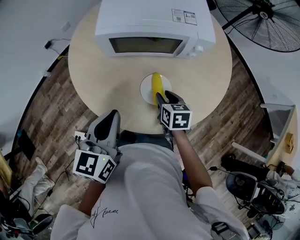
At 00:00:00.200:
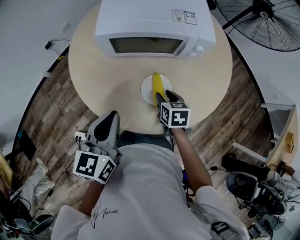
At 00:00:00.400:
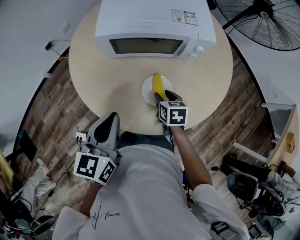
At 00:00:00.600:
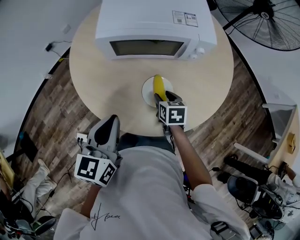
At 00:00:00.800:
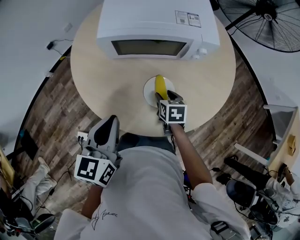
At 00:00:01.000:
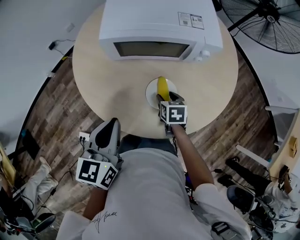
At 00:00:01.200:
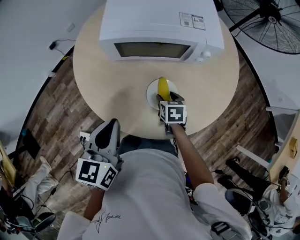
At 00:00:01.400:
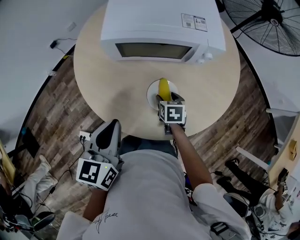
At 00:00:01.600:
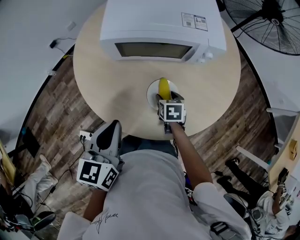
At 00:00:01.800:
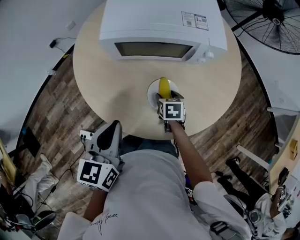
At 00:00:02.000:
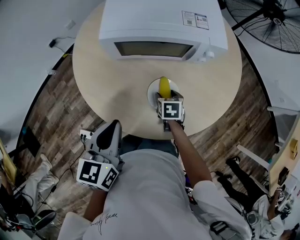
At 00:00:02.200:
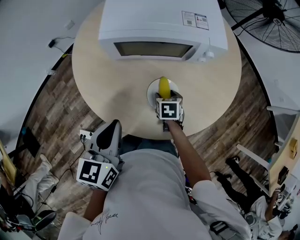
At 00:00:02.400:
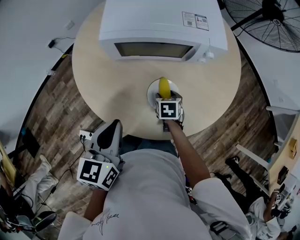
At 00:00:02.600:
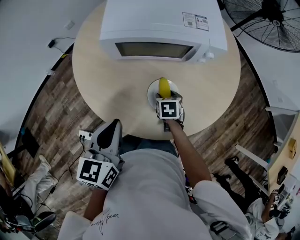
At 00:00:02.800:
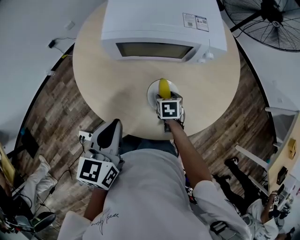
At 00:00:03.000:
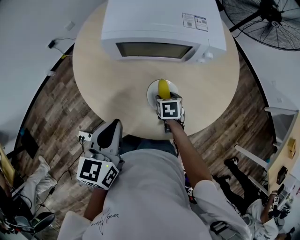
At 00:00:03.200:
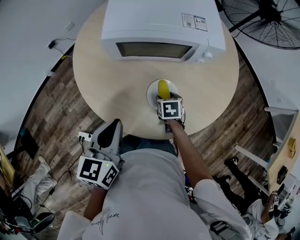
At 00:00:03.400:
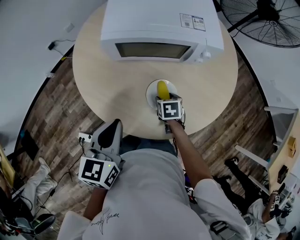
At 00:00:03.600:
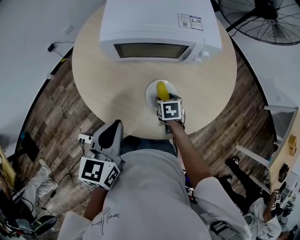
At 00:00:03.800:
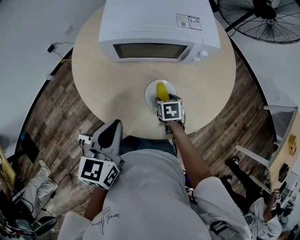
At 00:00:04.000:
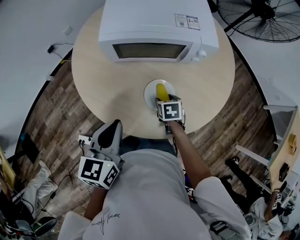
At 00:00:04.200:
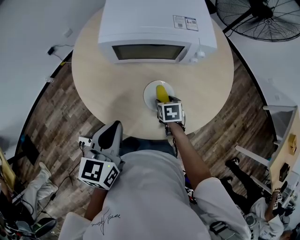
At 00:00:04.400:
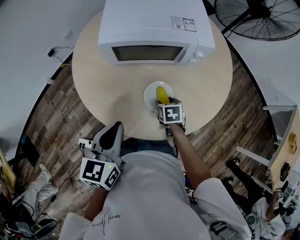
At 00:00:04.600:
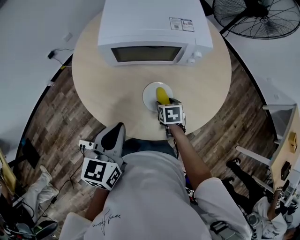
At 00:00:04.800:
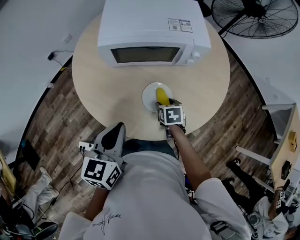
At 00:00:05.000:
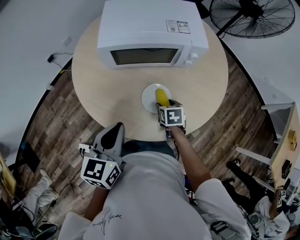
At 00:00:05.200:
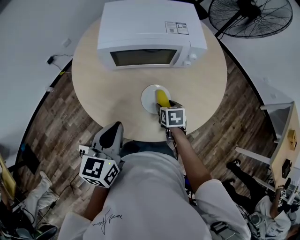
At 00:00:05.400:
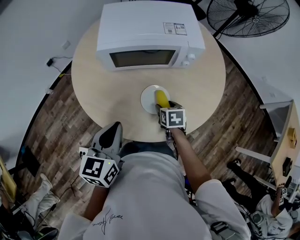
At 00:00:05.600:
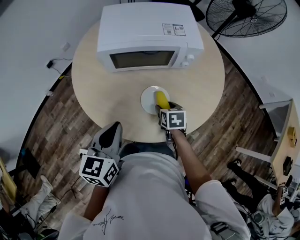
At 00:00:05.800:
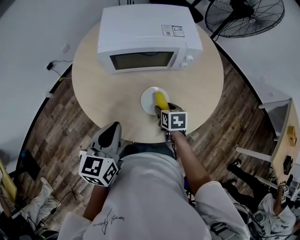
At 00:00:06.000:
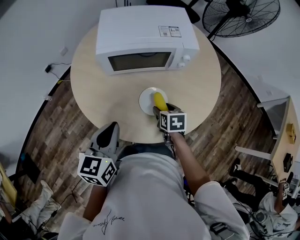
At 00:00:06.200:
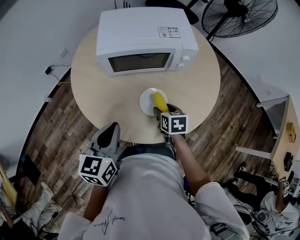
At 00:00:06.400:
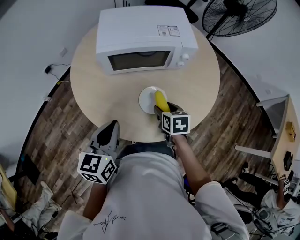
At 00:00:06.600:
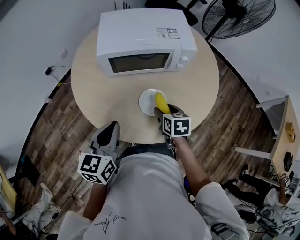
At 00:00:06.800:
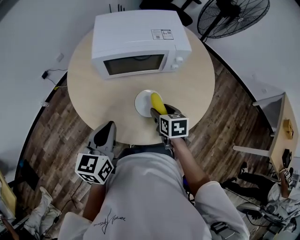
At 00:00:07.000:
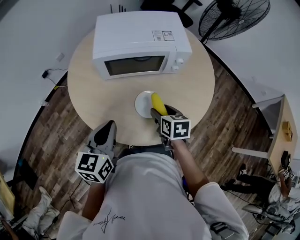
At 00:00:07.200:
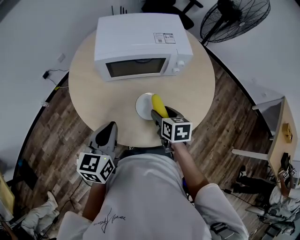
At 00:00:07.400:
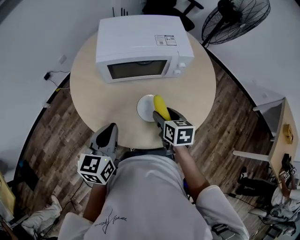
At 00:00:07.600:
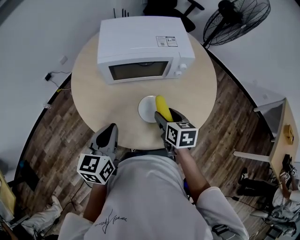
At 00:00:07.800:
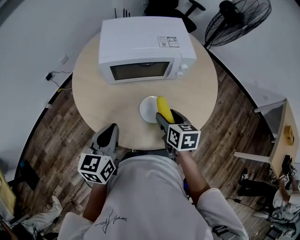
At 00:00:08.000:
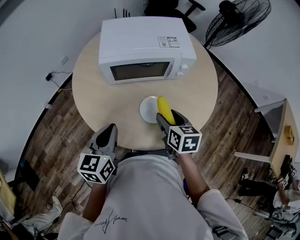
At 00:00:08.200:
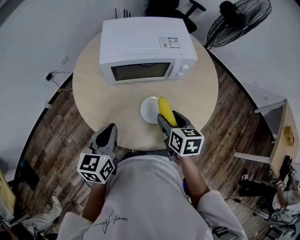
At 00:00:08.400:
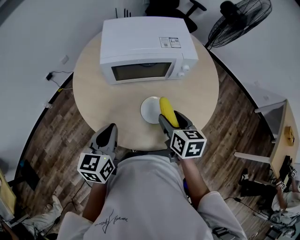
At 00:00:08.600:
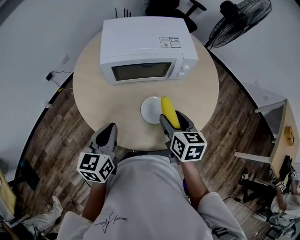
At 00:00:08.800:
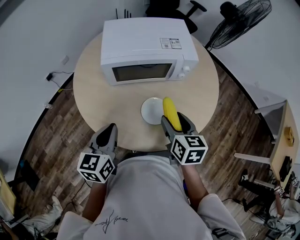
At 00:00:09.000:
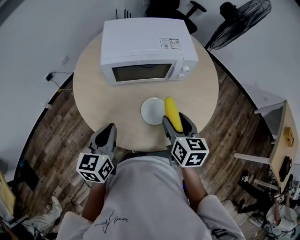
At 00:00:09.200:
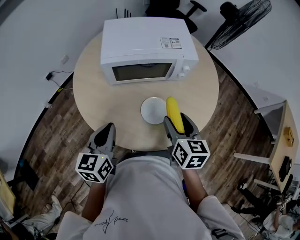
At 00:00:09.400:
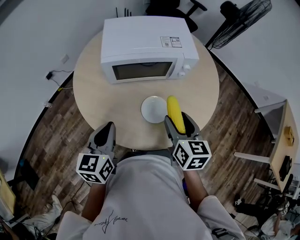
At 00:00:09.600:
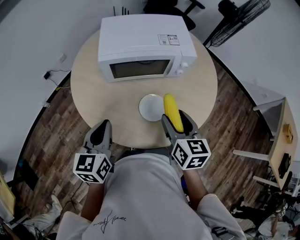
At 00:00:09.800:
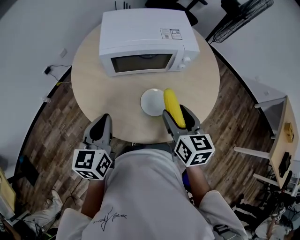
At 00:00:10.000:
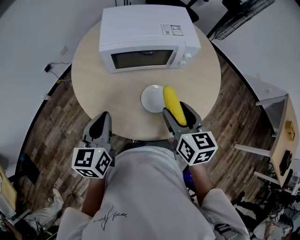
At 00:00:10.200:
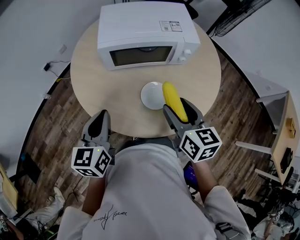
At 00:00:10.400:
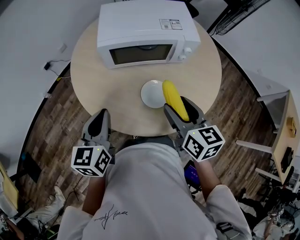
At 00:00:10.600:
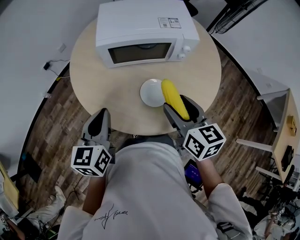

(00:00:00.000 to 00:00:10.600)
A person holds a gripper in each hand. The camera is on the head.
00:00:00.000 - 00:00:01.600: The right gripper moves downward, some 10 cm, and opens its fingers.
00:00:01.600 - 00:00:04.600: There are only small adjustments of the grippers.
00:00:04.600 - 00:00:06.000: The right gripper heads upward, covering about 5 cm.
00:00:06.000 - 00:00:07.600: The right gripper moves upward, about 10 cm.
00:00:07.600 - 00:00:09.000: The right gripper goes roughly 5 cm upward.
00:00:09.000 - 00:00:10.600: The grippers move only a little.

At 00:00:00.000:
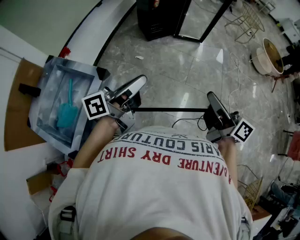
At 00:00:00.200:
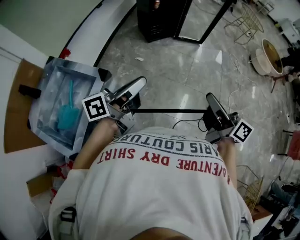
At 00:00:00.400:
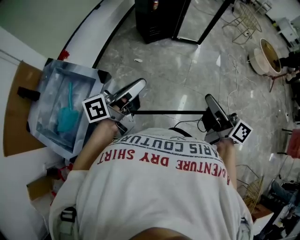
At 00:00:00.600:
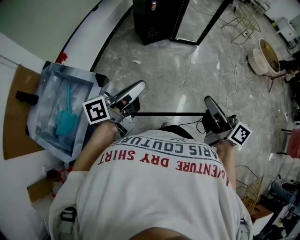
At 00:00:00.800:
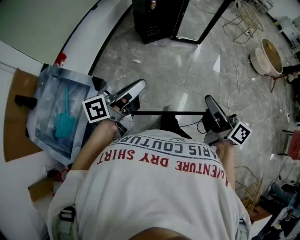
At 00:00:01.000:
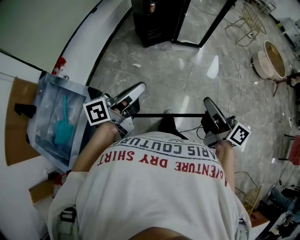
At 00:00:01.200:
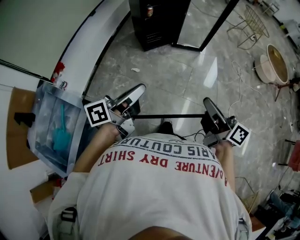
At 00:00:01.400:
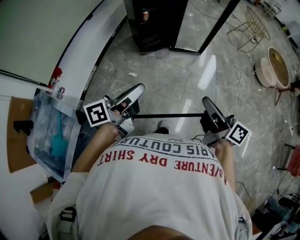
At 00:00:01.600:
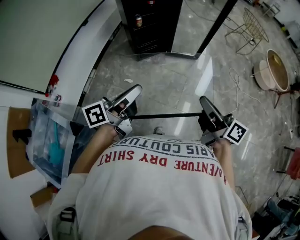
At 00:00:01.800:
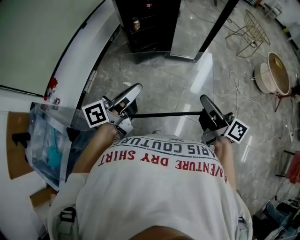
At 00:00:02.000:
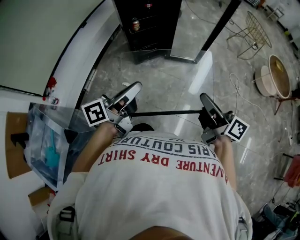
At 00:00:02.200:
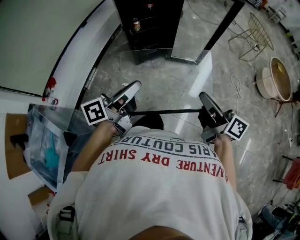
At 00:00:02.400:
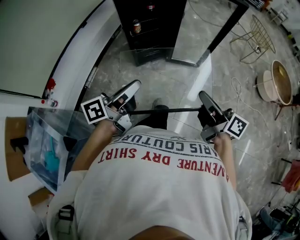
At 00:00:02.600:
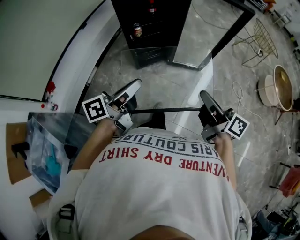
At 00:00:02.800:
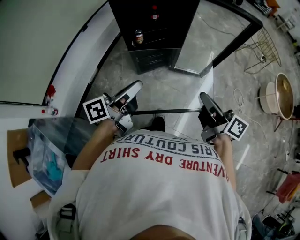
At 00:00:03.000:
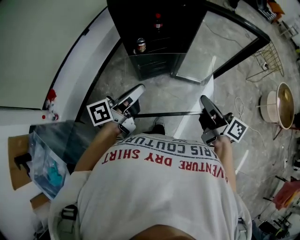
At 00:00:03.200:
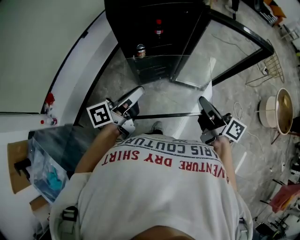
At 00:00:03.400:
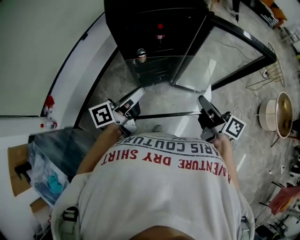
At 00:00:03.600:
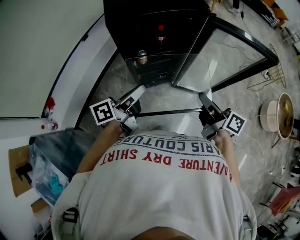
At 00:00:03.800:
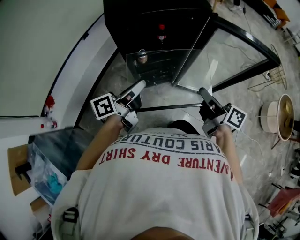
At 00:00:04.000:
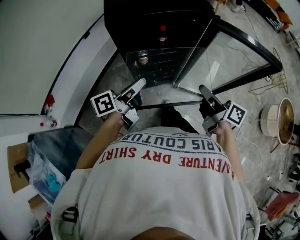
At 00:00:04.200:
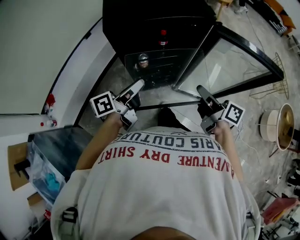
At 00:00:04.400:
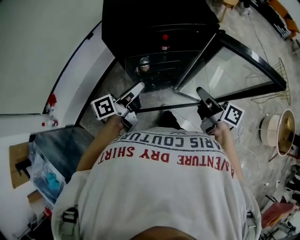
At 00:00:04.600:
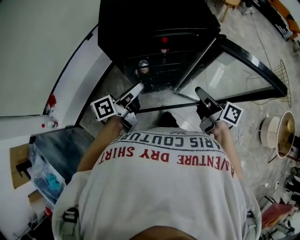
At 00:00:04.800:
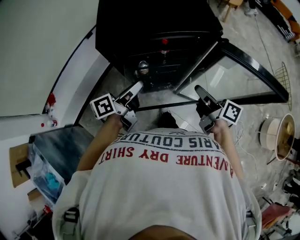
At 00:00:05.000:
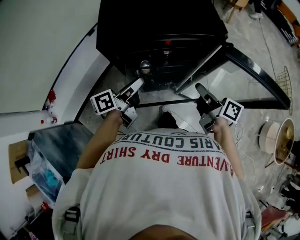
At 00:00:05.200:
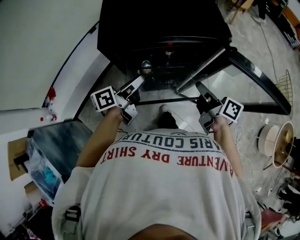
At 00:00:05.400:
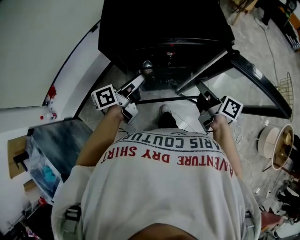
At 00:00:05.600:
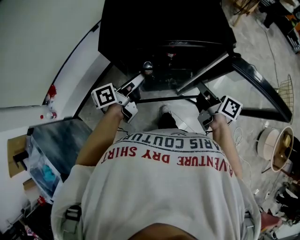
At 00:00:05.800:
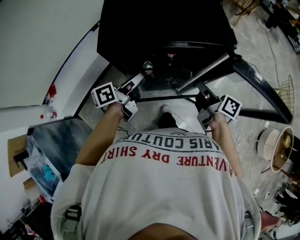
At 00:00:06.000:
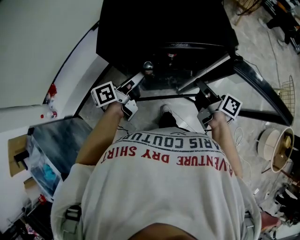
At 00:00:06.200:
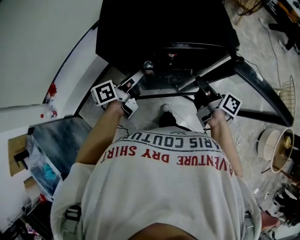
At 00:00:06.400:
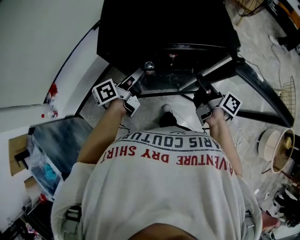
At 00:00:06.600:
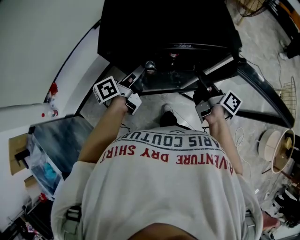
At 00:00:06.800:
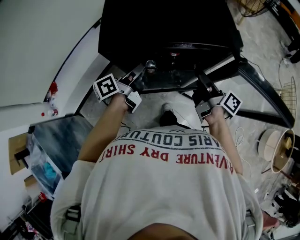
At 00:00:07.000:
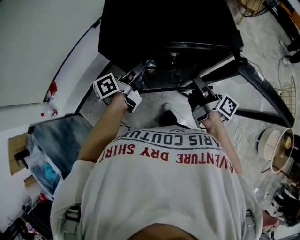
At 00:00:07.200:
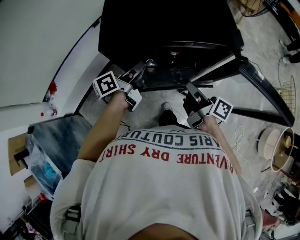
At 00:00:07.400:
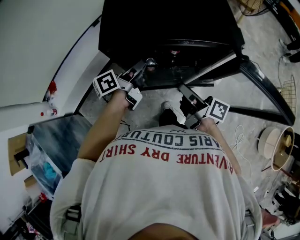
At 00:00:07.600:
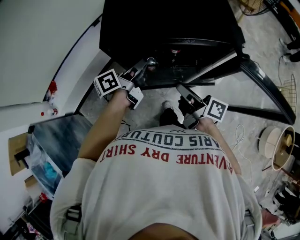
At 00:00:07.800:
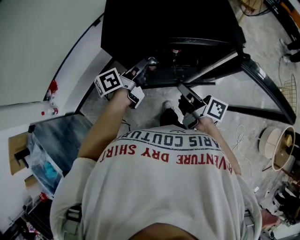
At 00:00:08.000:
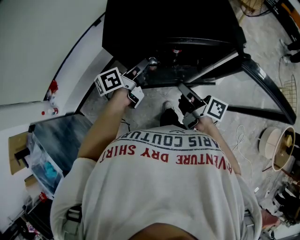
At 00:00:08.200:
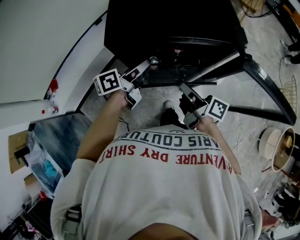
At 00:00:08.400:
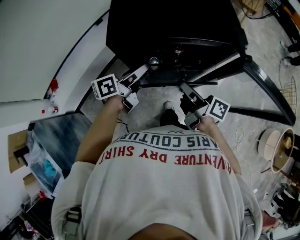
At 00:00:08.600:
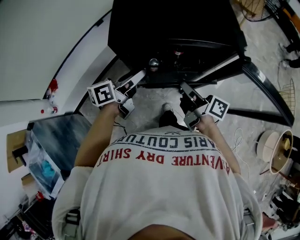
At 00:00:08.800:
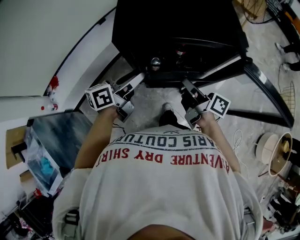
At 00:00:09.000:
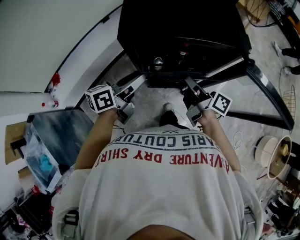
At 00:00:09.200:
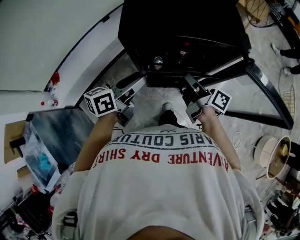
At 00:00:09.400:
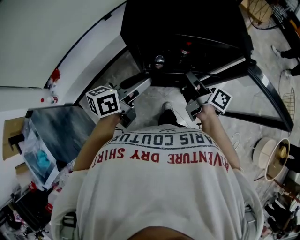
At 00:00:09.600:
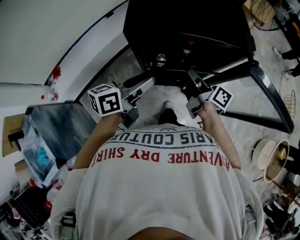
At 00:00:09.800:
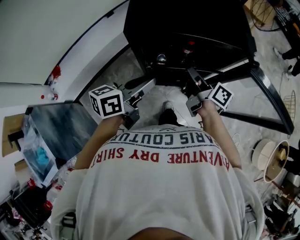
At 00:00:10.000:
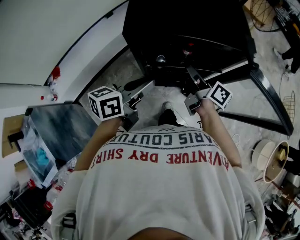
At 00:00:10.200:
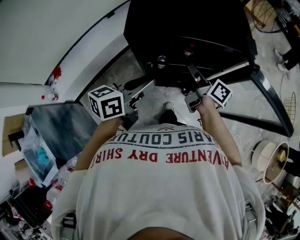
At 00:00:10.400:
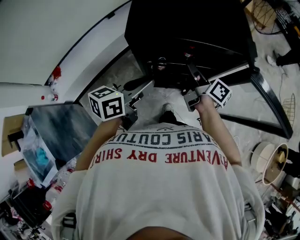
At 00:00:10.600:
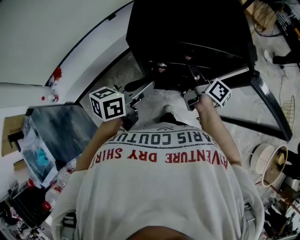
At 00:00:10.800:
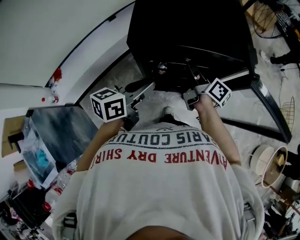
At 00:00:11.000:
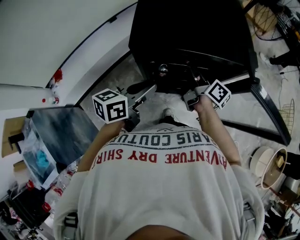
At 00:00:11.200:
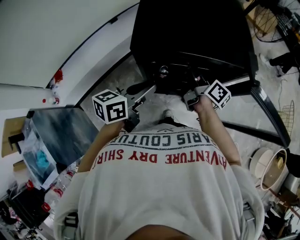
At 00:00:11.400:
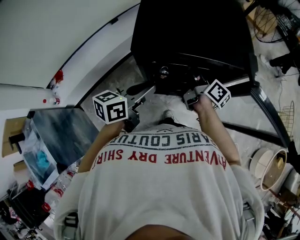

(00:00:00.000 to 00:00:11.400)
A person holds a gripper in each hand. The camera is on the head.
00:00:00.000 - 00:00:01.400: Both grippers travel together forward, some 20 cm.
00:00:01.400 - 00:00:02.800: The grippers both shift forward by approximately 30 cm.
00:00:02.800 - 00:00:04.200: The two grippers go some 25 cm forward.
00:00:04.200 - 00:00:05.600: The grippers both shift forward by some 10 cm.
00:00:05.600 - 00:00:07.200: The right gripper moves to the left, approximately 5 cm.
00:00:07.200 - 00:00:08.600: The left gripper shifts by about 5 cm, and opens up.
00:00:08.600 - 00:00:10.000: The right gripper heads forward, covering approximately 5 cm; the left gripper is displaced backward by roughly 5 cm, and closes its fingers.
00:00:10.000 - 00:00:11.400: The right gripper is displaced forward by about 5 cm.

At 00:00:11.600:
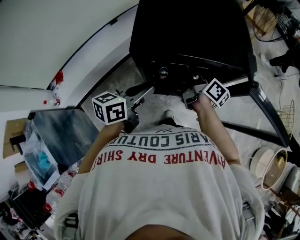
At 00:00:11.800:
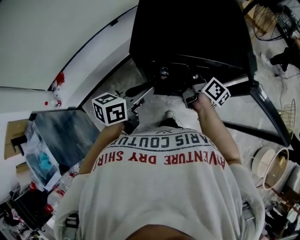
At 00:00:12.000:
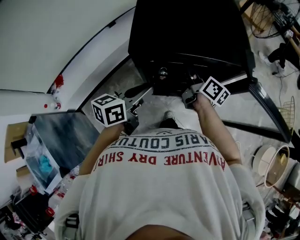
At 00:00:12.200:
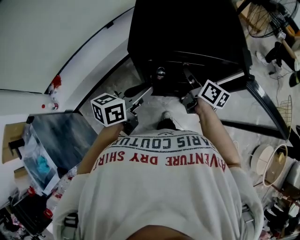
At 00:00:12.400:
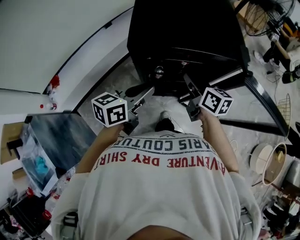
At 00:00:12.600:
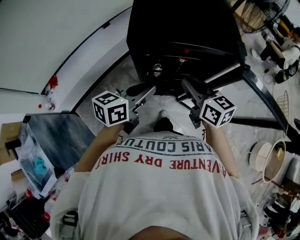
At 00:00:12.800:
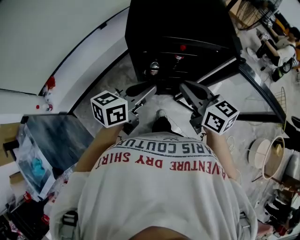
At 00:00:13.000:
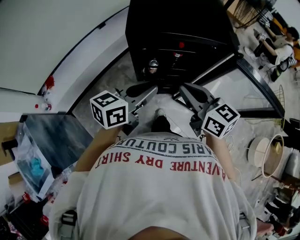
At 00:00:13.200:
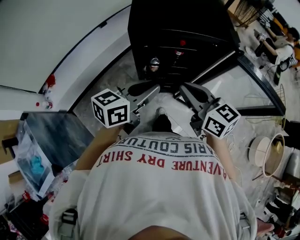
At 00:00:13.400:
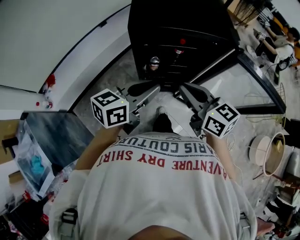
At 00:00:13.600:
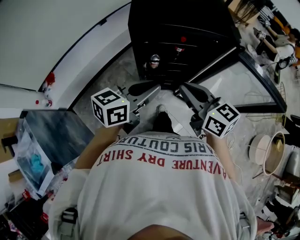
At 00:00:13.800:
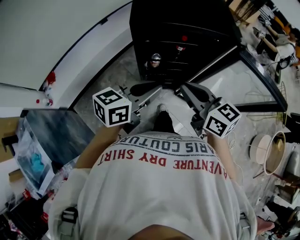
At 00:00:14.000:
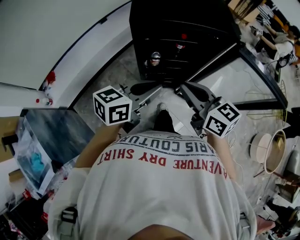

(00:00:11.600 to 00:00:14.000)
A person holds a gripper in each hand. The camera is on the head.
00:00:11.600 - 00:00:12.800: The left gripper moves about 5 cm, while the right gripper moves backward and upward, approximately 20 cm, and twists some 40 degrees counterclockwise, seen from behind.
00:00:12.800 - 00:00:14.000: The grippers both shift backward by about 5 cm.
